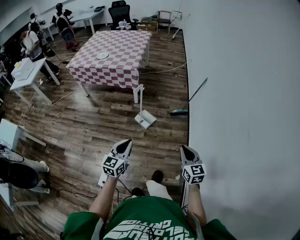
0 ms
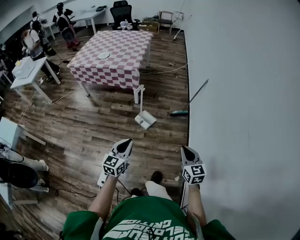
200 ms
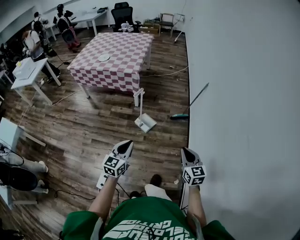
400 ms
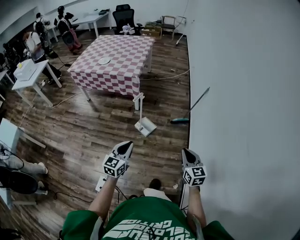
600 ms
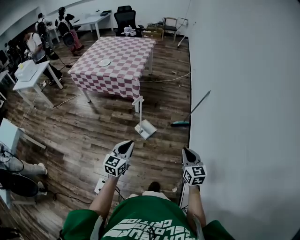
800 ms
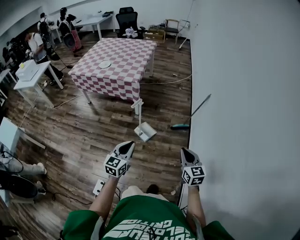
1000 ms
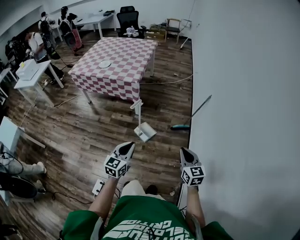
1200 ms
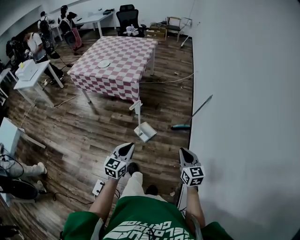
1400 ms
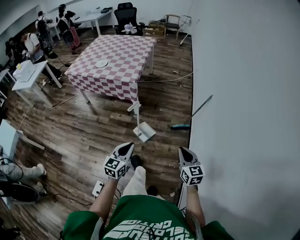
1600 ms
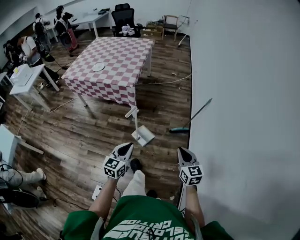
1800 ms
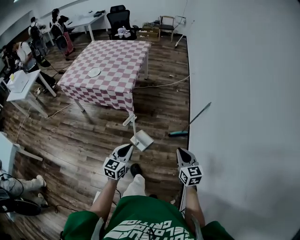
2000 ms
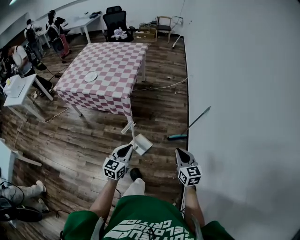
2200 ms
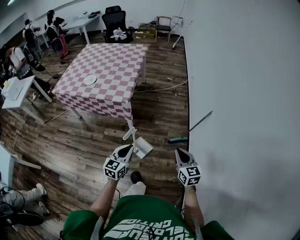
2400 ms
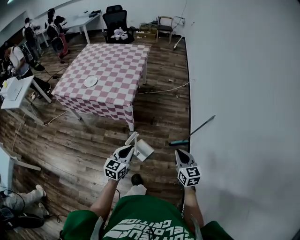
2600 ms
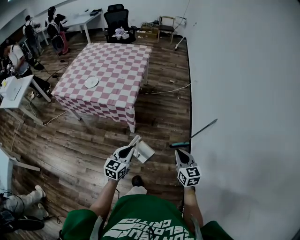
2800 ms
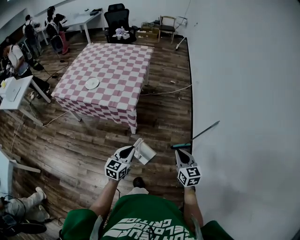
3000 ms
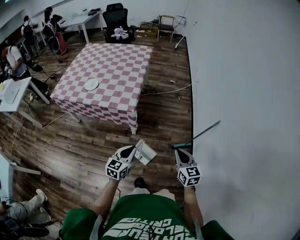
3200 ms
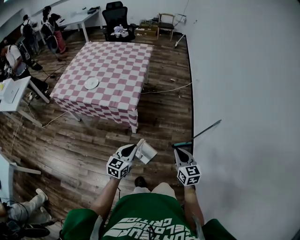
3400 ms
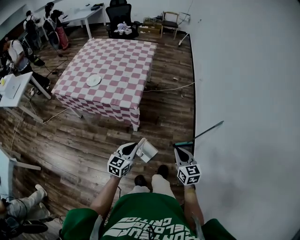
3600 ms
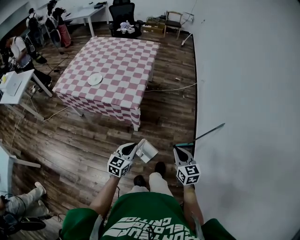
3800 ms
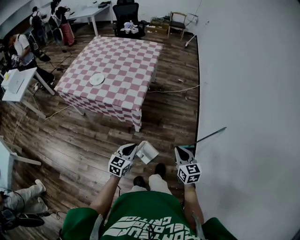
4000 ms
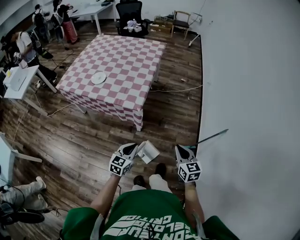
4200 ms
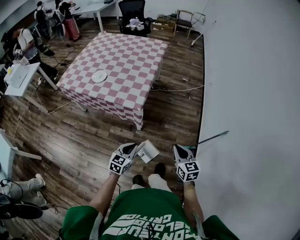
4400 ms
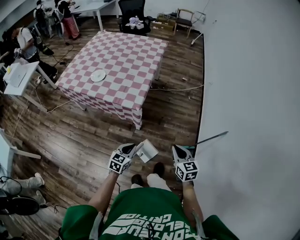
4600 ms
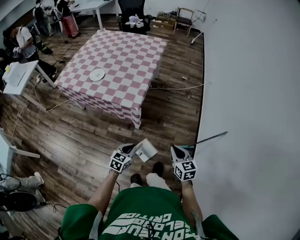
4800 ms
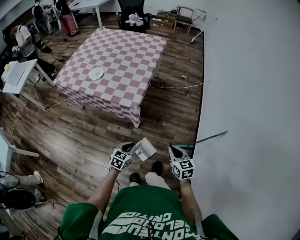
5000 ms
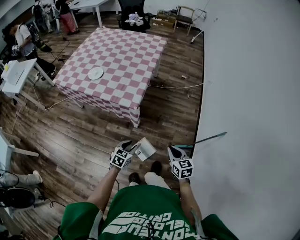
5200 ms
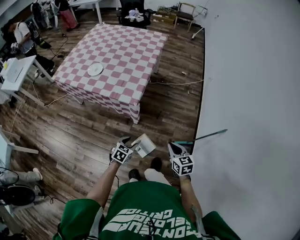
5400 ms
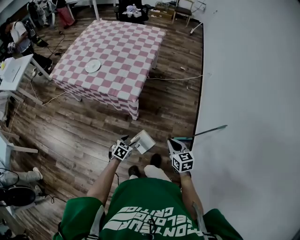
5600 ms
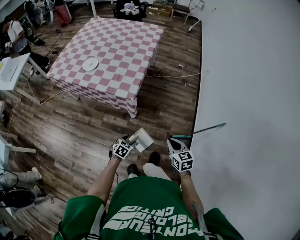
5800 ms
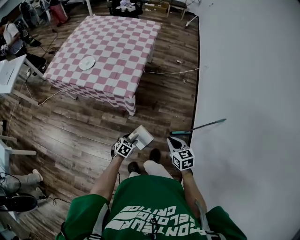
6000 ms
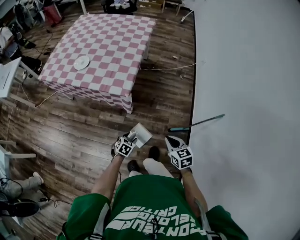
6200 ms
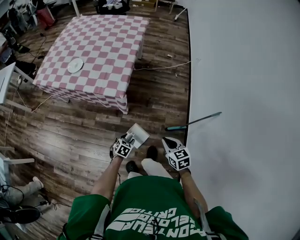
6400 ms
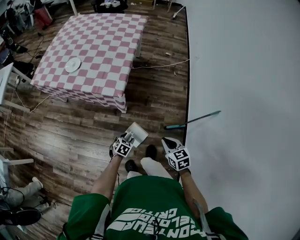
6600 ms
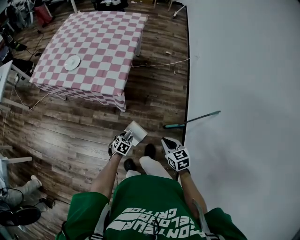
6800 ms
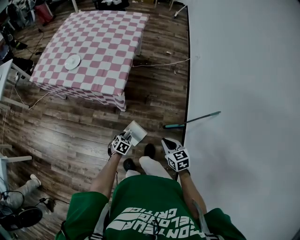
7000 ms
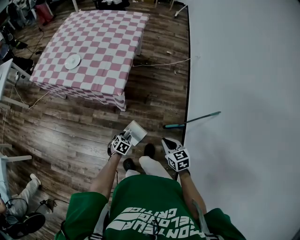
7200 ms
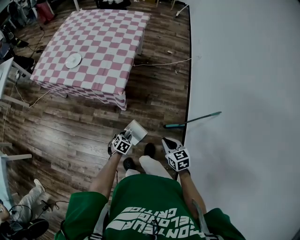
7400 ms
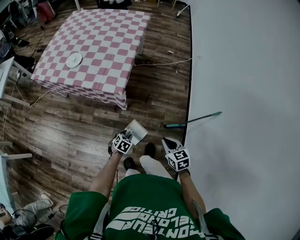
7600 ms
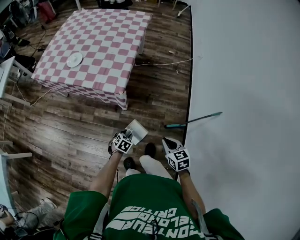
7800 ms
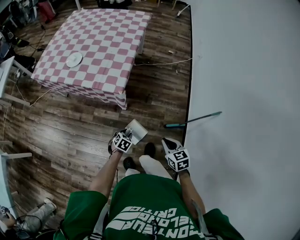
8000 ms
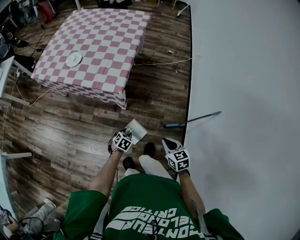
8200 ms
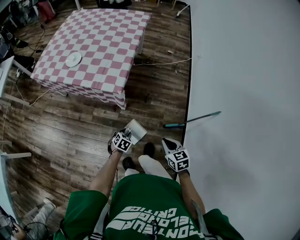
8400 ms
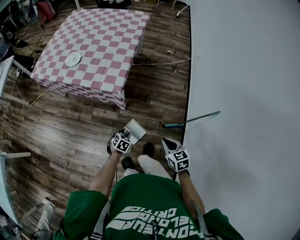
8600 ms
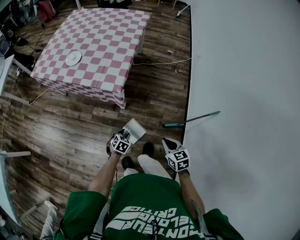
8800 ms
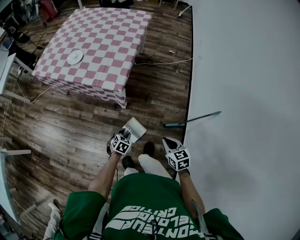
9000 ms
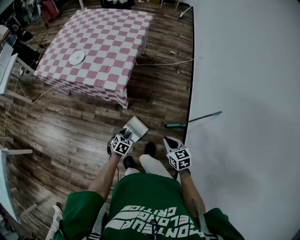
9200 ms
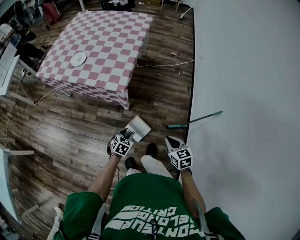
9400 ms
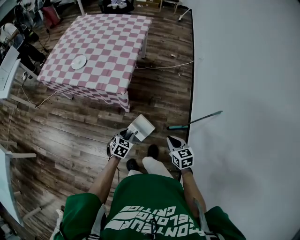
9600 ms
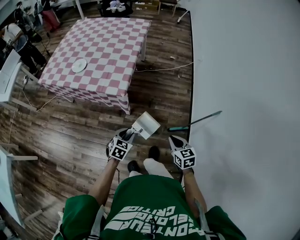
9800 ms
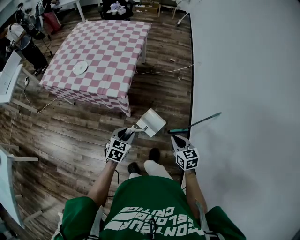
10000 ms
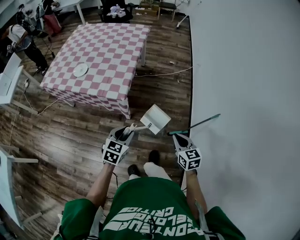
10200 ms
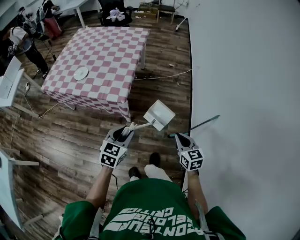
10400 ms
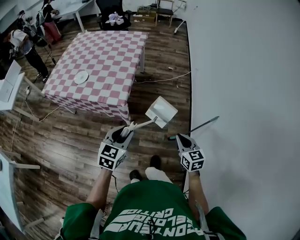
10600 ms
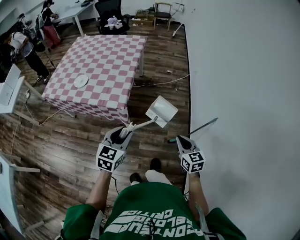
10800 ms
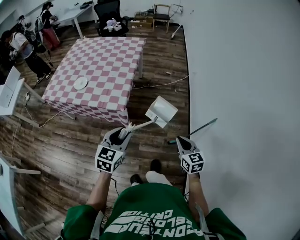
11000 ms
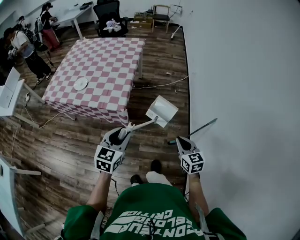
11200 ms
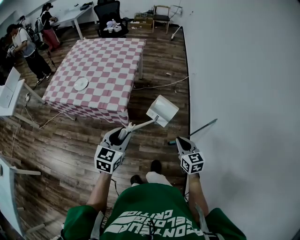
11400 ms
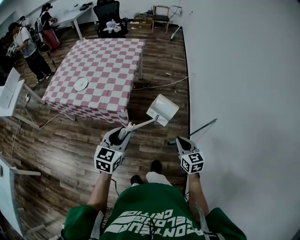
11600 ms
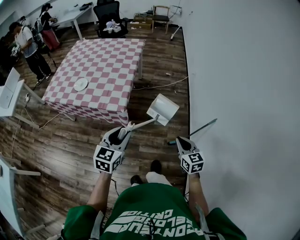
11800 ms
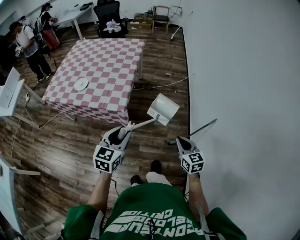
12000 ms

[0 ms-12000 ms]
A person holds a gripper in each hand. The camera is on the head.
0 ms to 1600 ms: The grippers both shift forward by approximately 20 cm.
1600 ms to 3000 ms: The left gripper goes roughly 30 cm forward. Meanwhile the right gripper shifts approximately 30 cm forward and to the left.
3000 ms to 4400 ms: The left gripper heads forward and downward, covering about 10 cm. Meanwhile the right gripper moves forward, approximately 10 cm.
4400 ms to 6000 ms: The left gripper moves downward, approximately 20 cm, rotates some 30 degrees, and opens. The right gripper heads downward, covering some 10 cm.
6000 ms to 7600 ms: The left gripper closes its fingers.
7600 ms to 9000 ms: There are only small adjustments of the grippers.
9000 ms to 10400 ms: The left gripper travels upward by some 30 cm, and turns by approximately 30 degrees. The right gripper moves upward and to the right, roughly 10 cm.
10400 ms to 12000 ms: The left gripper moves upward, roughly 10 cm.

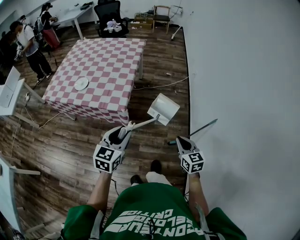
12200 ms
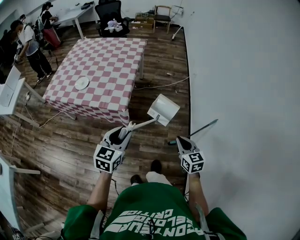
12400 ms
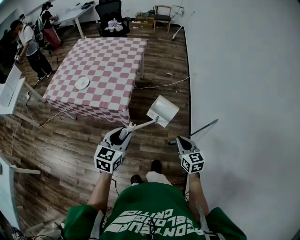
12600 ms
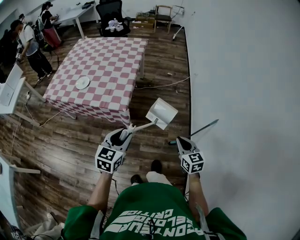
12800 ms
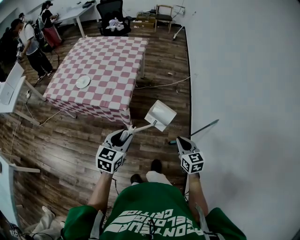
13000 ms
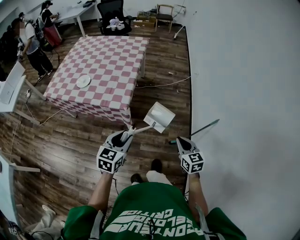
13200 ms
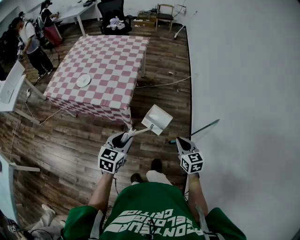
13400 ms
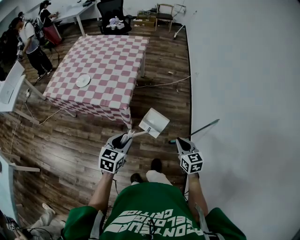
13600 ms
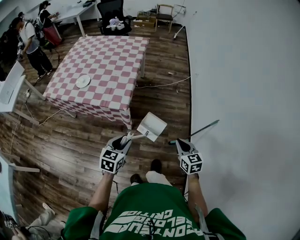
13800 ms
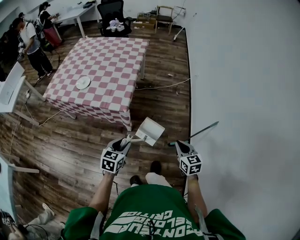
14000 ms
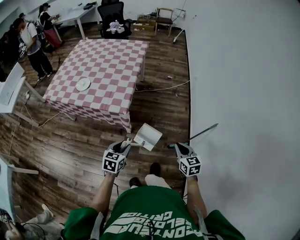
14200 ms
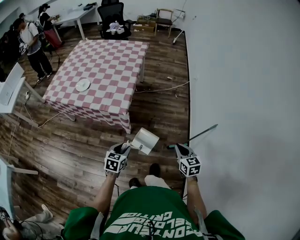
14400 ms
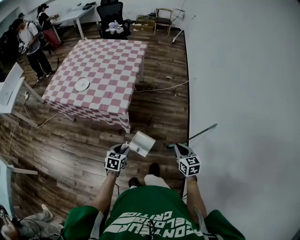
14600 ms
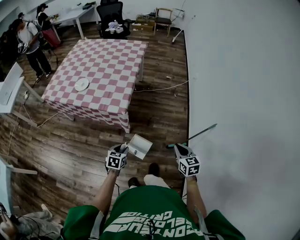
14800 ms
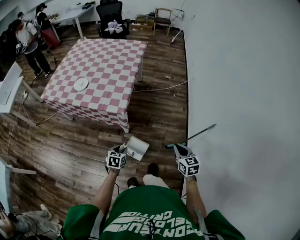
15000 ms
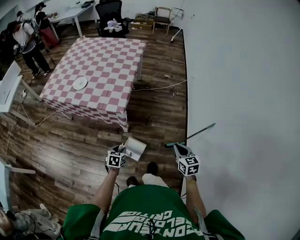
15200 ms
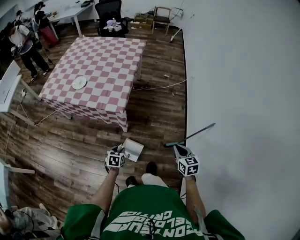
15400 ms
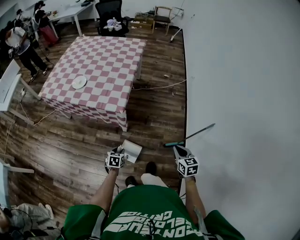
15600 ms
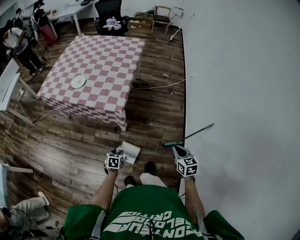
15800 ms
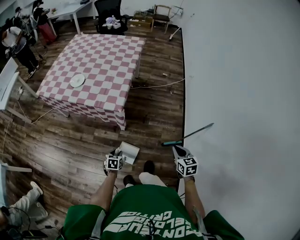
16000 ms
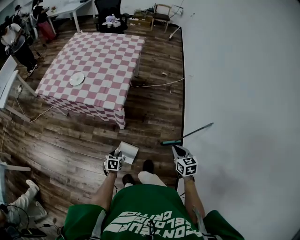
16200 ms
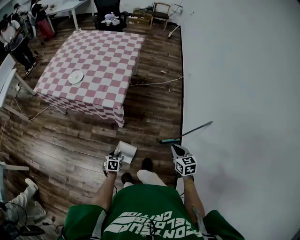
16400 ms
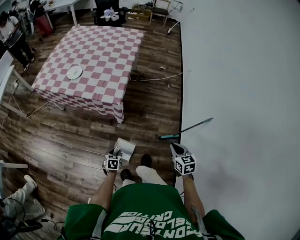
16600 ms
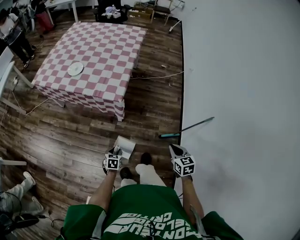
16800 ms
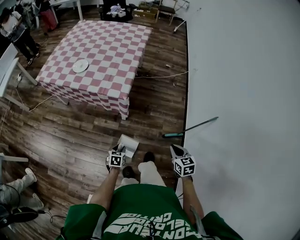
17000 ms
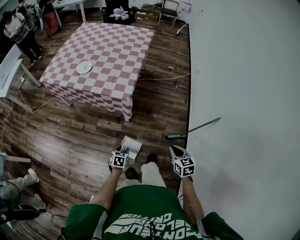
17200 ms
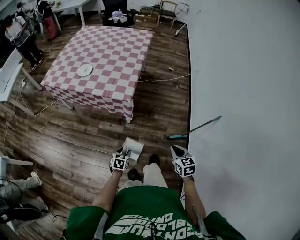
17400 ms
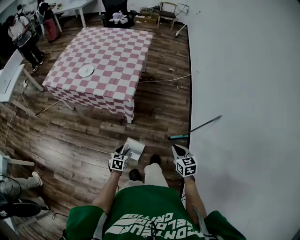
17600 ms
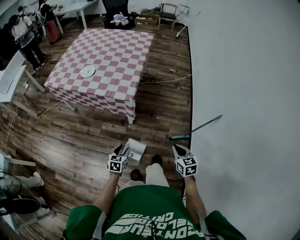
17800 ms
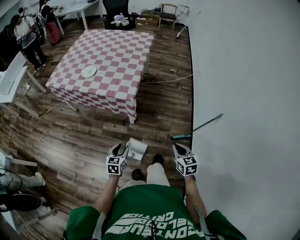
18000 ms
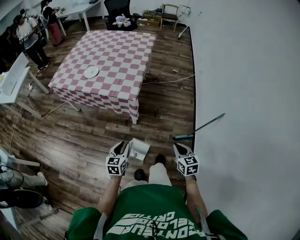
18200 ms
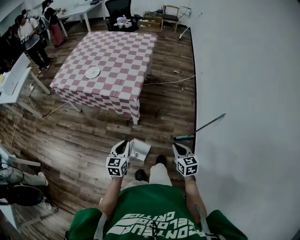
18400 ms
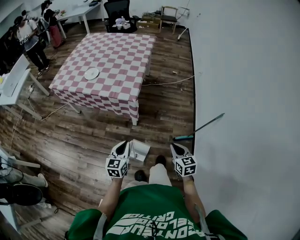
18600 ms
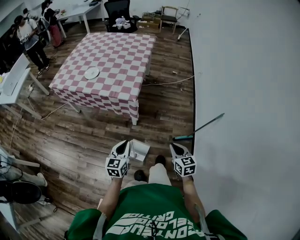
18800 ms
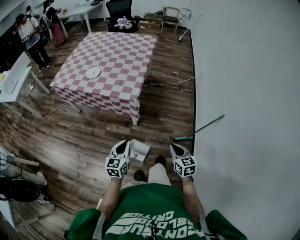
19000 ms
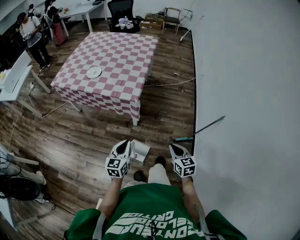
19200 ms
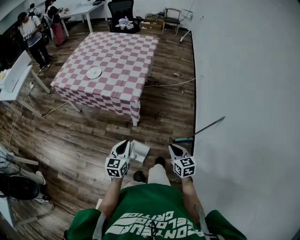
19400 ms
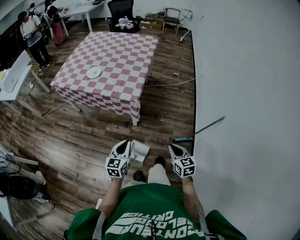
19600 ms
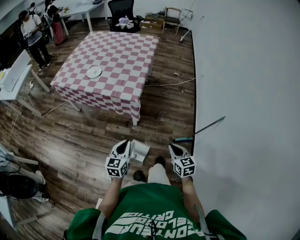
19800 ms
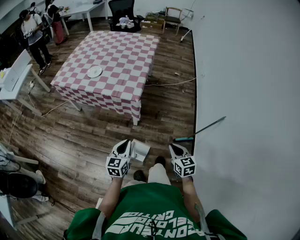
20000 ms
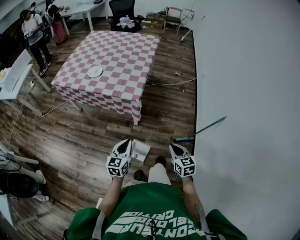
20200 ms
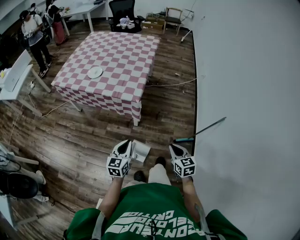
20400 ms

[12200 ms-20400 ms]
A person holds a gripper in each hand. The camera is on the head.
12200 ms to 13800 ms: The left gripper travels downward by about 10 cm.
13800 ms to 15400 ms: The left gripper travels downward by some 20 cm, and swivels approximately 20 degrees.
15400 ms to 17200 ms: The left gripper goes about 10 cm downward and backward. The right gripper moves to the left and backward, about 10 cm.
17200 ms to 18800 ms: The left gripper heads upward, covering approximately 20 cm, angles its fingers upward, by approximately 30 degrees, and closes, while the right gripper changes place by about 5 cm.
18800 ms to 20400 ms: There are only small adjustments of the grippers.

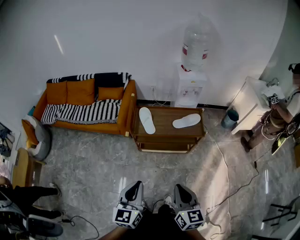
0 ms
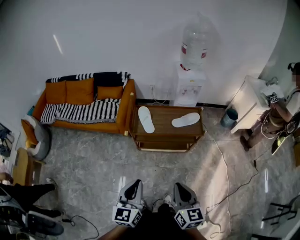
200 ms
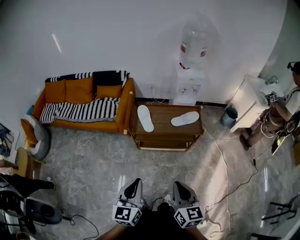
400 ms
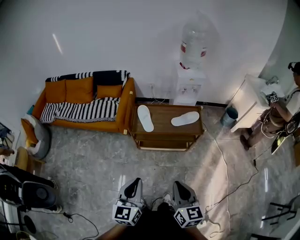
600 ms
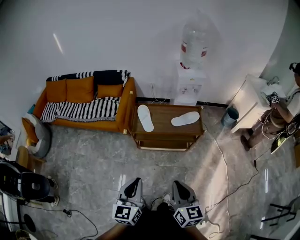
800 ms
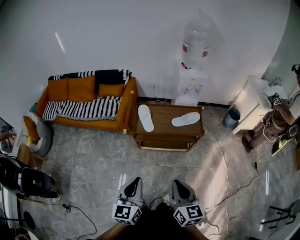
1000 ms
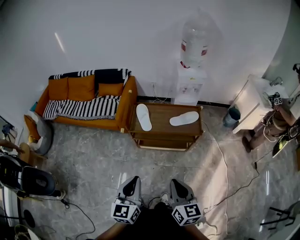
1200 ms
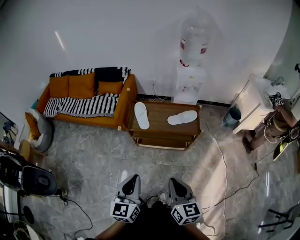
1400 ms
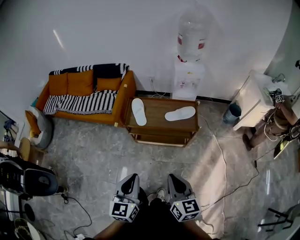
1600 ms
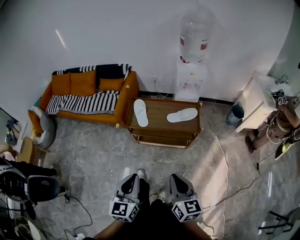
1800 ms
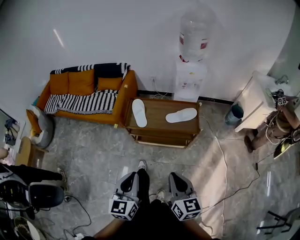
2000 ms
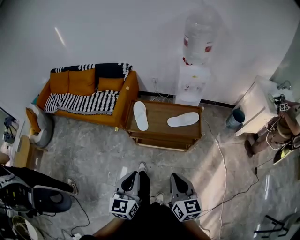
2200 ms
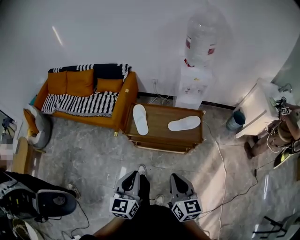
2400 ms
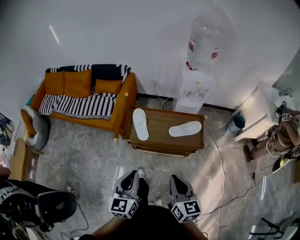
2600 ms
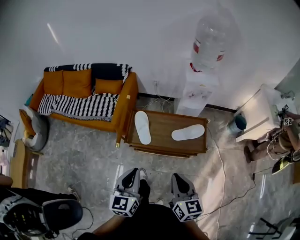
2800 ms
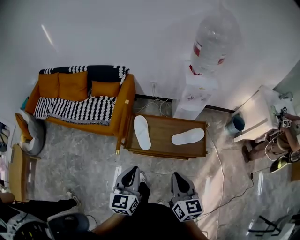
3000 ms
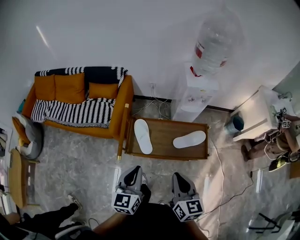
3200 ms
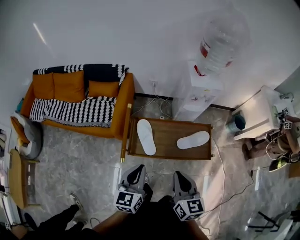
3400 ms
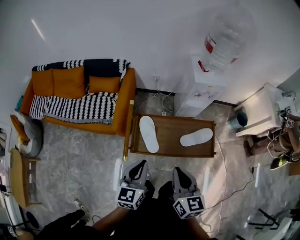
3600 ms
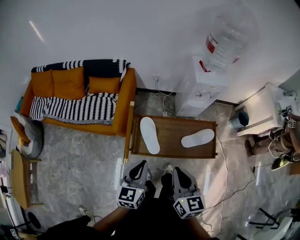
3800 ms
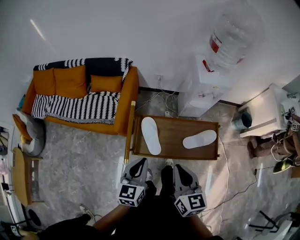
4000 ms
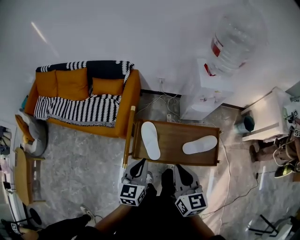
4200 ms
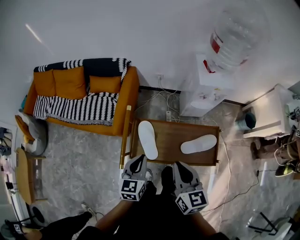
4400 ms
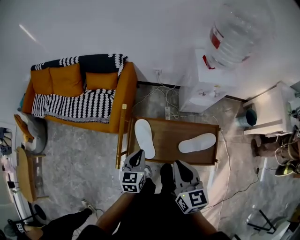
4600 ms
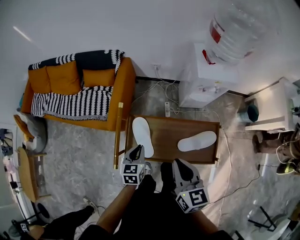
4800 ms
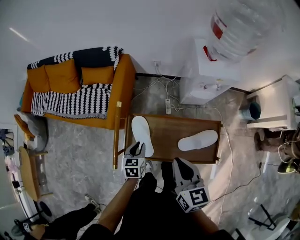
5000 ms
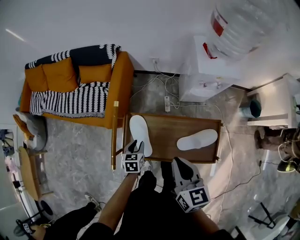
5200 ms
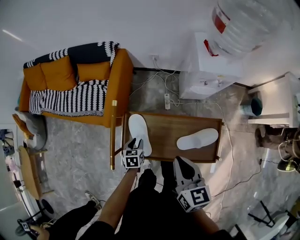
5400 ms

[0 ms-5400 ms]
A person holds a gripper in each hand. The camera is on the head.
0 ms to 1400 ms: The two grippers go approximately 5 cm to the right.
1400 ms to 2800 ms: Both grippers move forward, roughly 20 cm.
2800 ms to 4000 ms: The left gripper is displaced forward by about 20 cm. The right gripper is displaced forward and to the left by approximately 20 cm.
4000 ms to 5400 ms: The right gripper moves forward, to the right and downward, about 15 cm; the left gripper moves downward and forward, about 35 cm, points its fingers about 40 degrees further downward, and opens.
